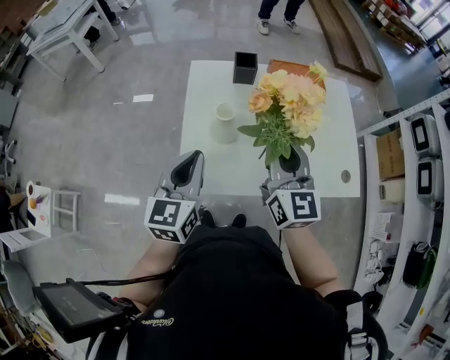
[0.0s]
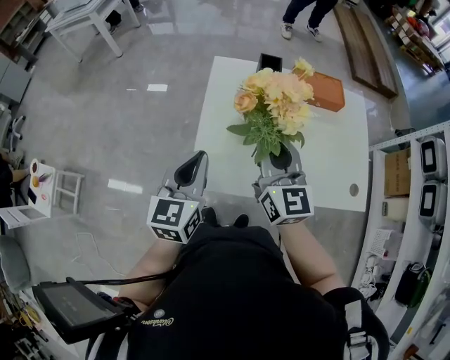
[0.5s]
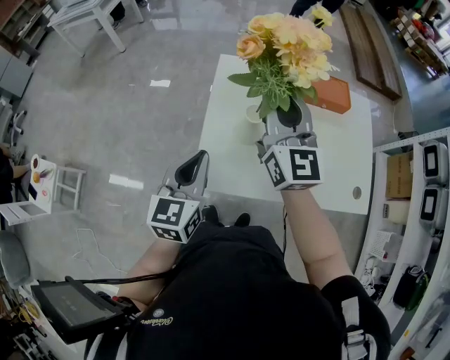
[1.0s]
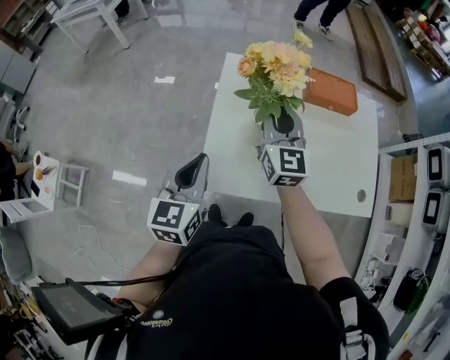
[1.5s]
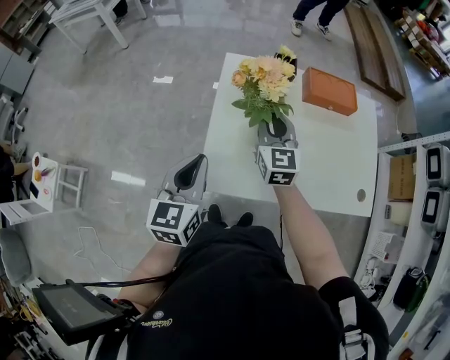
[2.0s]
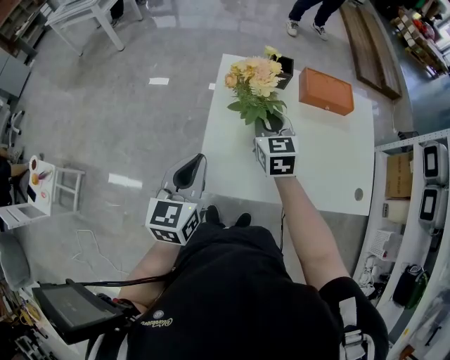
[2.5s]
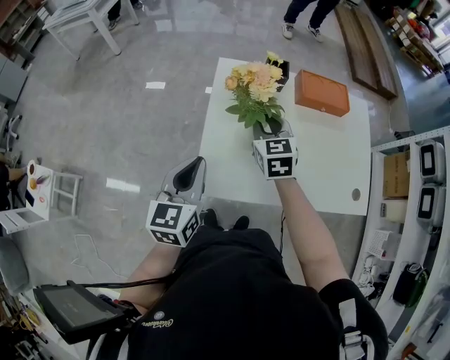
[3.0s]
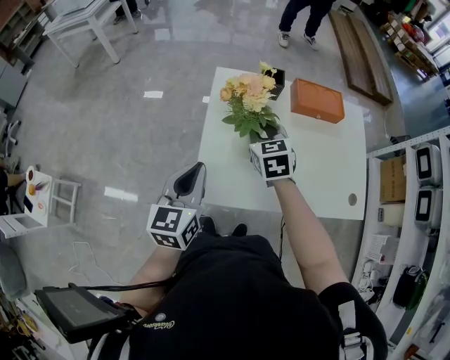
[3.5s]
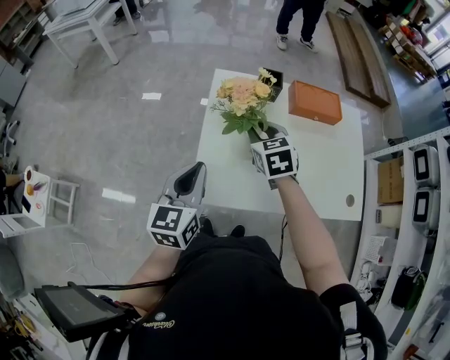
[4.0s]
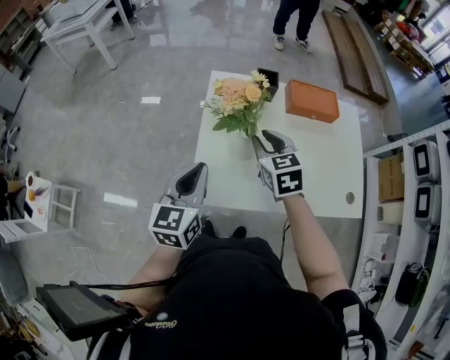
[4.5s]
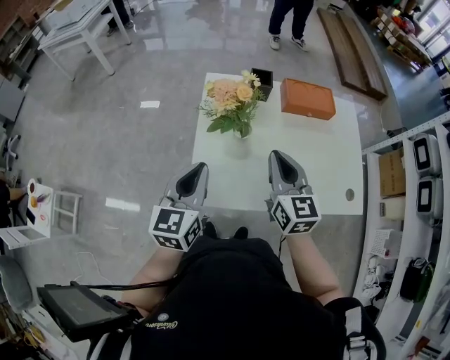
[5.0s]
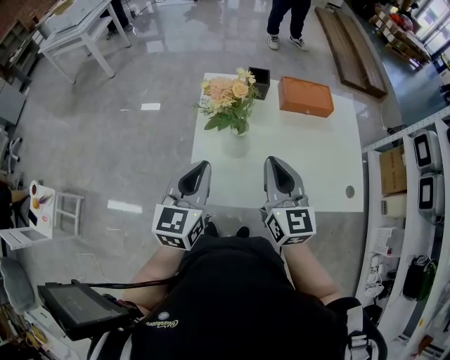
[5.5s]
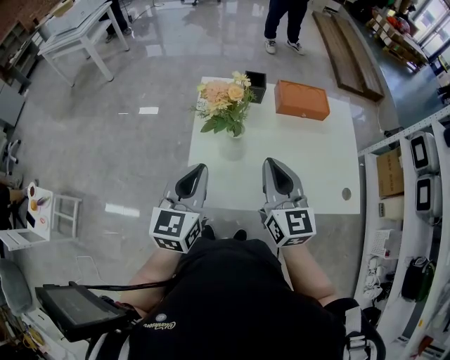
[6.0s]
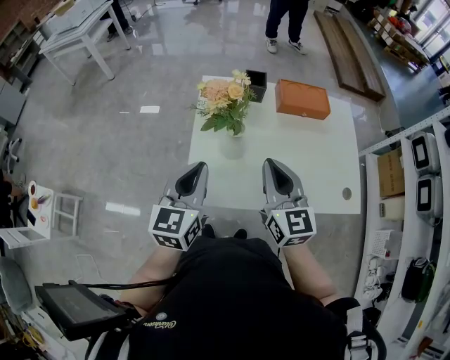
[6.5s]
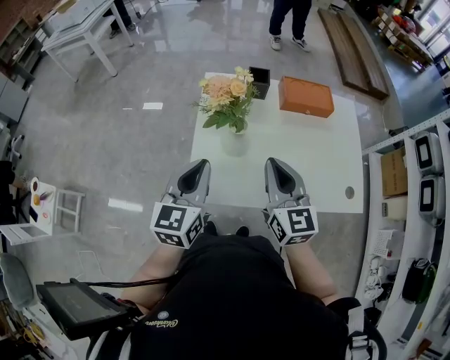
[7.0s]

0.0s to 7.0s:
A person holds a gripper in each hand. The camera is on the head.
0.0s to 2.0s: The right gripper travels forward, to the left and downward by approximately 20 cm; the left gripper heads to the left, covering about 10 cm.
2.0s to 3.5s: The right gripper changes its angle by some 20 degrees.
3.5s to 5.0s: The right gripper shifts approximately 15 cm backward, upward and to the right, and changes its angle by about 30 degrees.
5.0s to 7.0s: There are only small adjustments of the grippers.

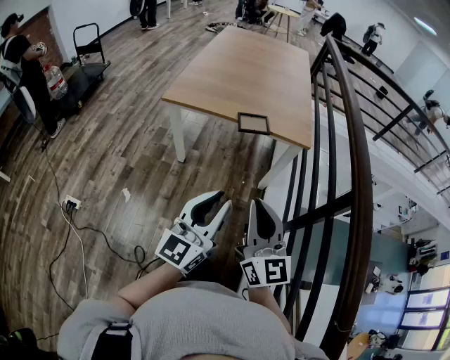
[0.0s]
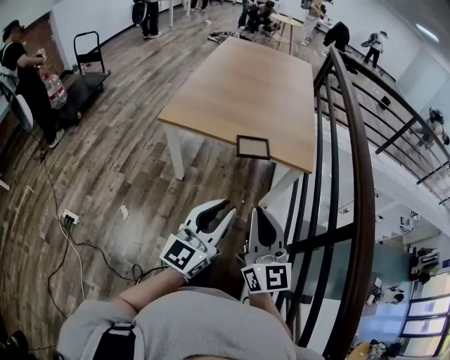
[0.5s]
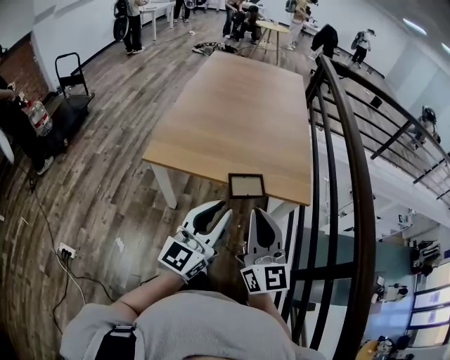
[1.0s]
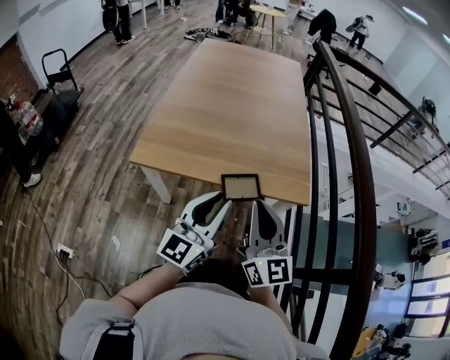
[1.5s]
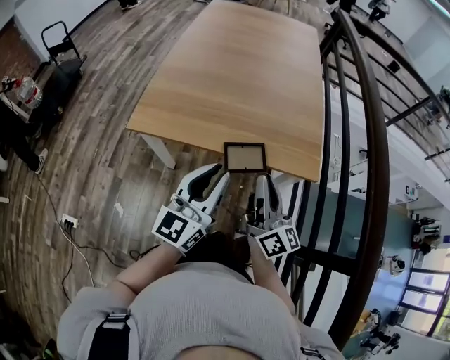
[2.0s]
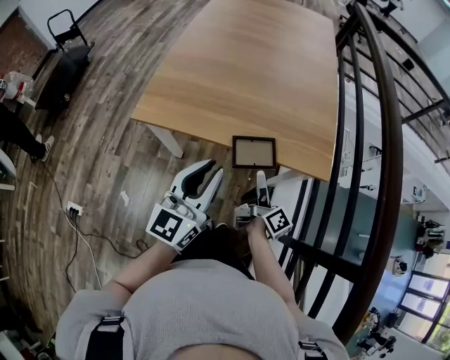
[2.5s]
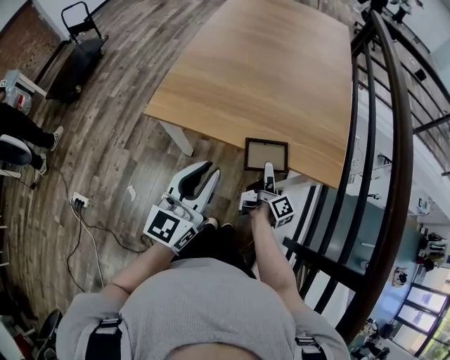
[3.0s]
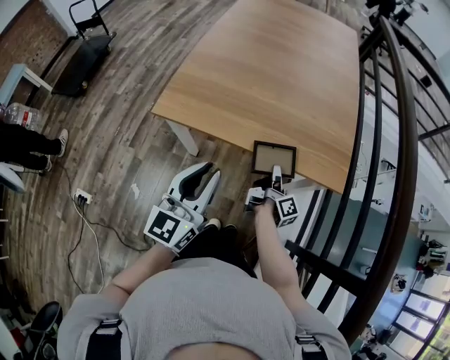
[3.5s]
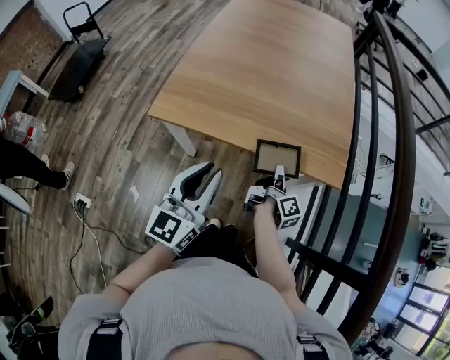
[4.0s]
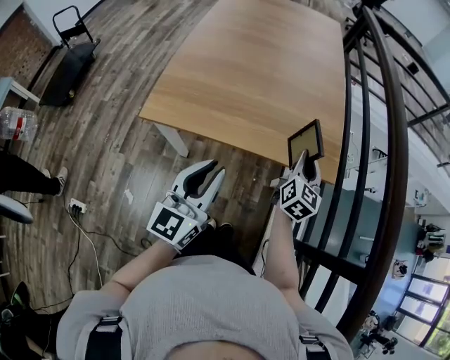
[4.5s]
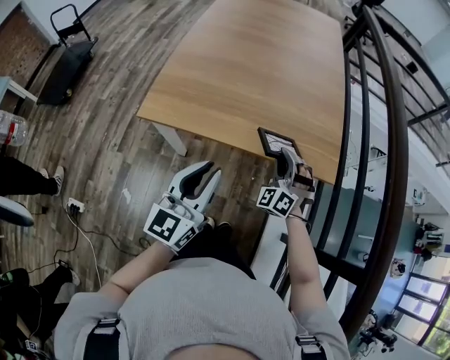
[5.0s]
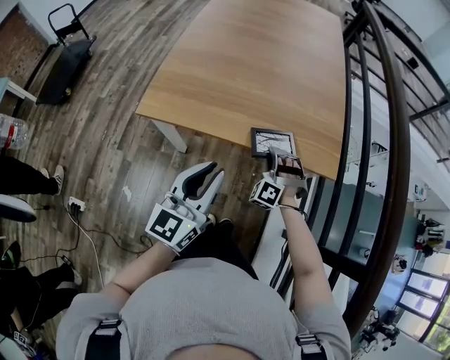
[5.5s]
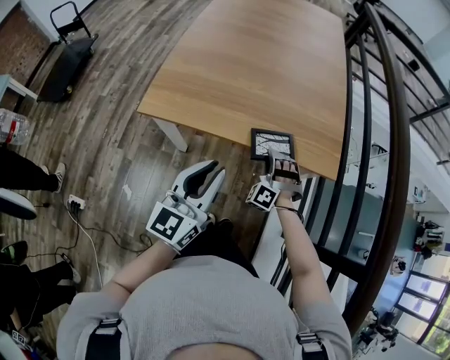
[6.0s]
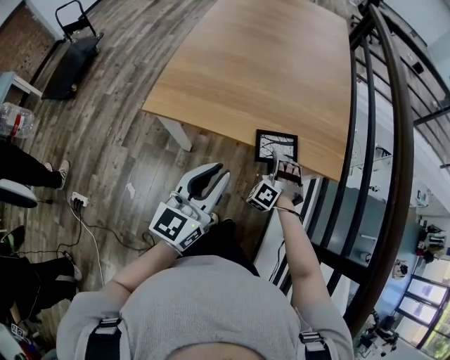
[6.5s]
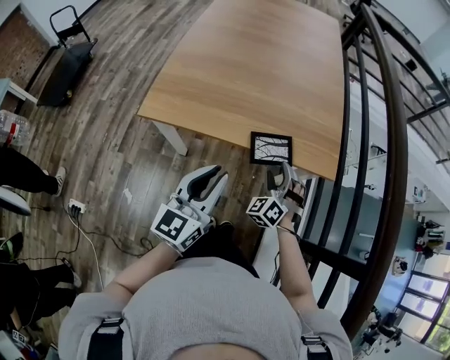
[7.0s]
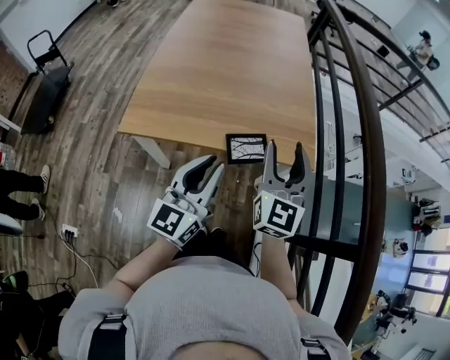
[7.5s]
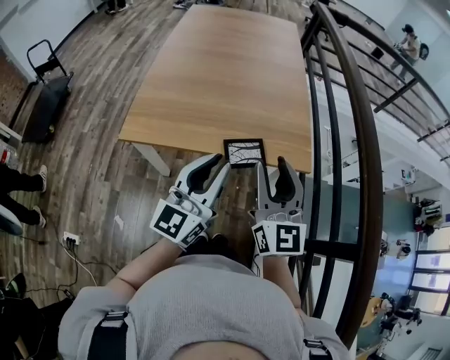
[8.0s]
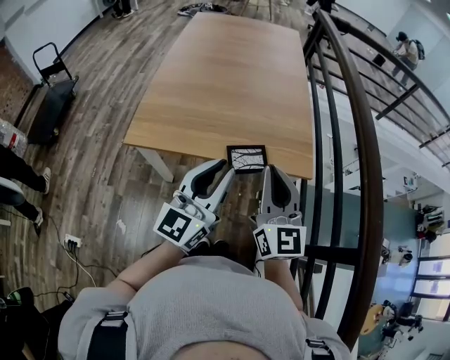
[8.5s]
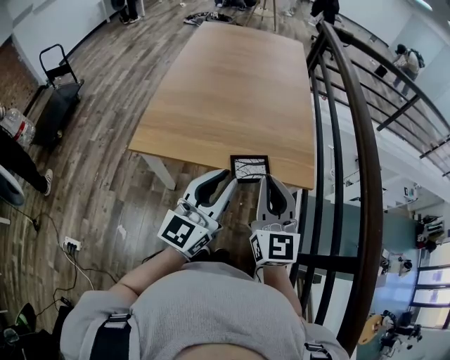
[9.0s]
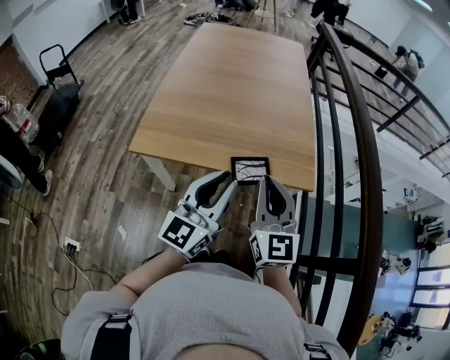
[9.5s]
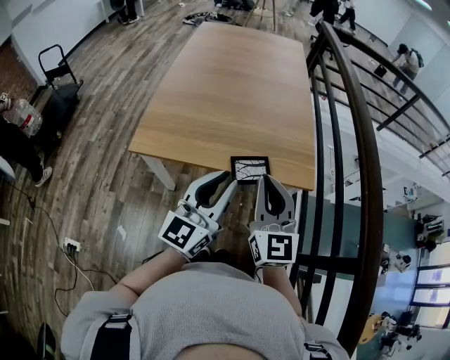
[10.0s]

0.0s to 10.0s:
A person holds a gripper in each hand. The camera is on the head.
0.0s to 2.0s: Both grippers move forward, approximately 40 cm. The right gripper swivels roughly 30 degrees.
2.0s to 4.0s: The left gripper shifts about 5 cm to the left. The right gripper is displaced downward and forward by some 20 cm, turns by roughly 50 degrees, and opens and closes again.
4.0s to 6.0s: The right gripper is displaced to the left by some 5 cm, goes upward and returns, roughly 10 cm each way, and twists about 170 degrees counterclockwise, seen from behind.
6.0s to 8.0s: The left gripper moves upward and to the right, approximately 10 cm, while the right gripper goes roughly 30 cm upward, rolls clockwise, seen from behind, by approximately 80 degrees, and opens its fingers.
8.0s to 10.0s: The right gripper closes up.

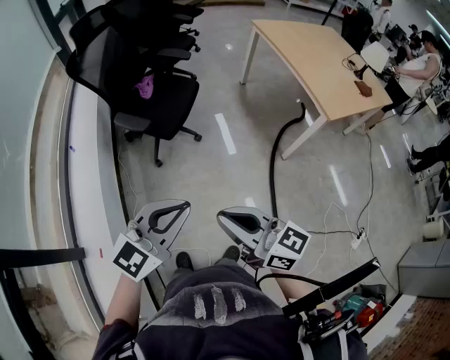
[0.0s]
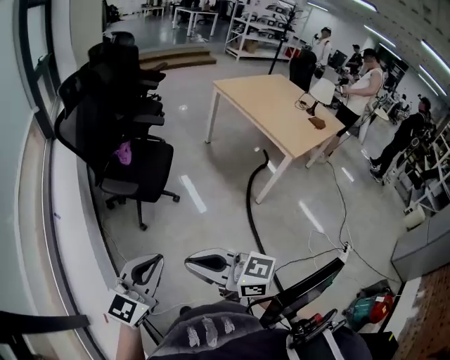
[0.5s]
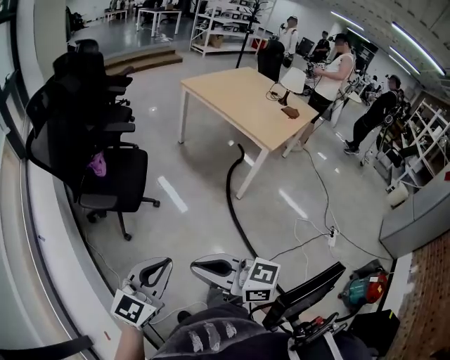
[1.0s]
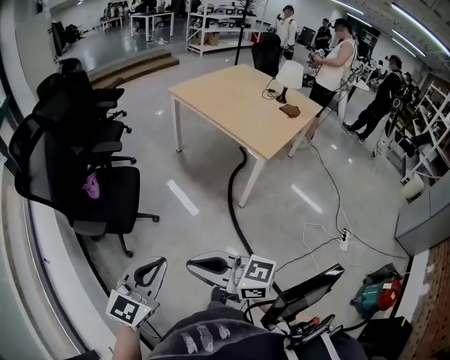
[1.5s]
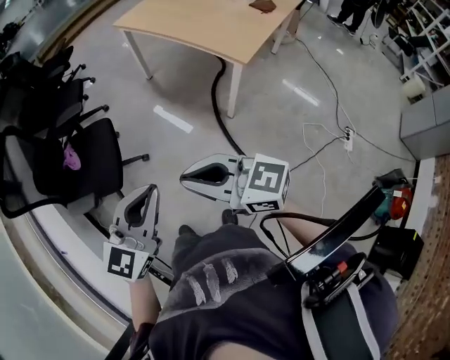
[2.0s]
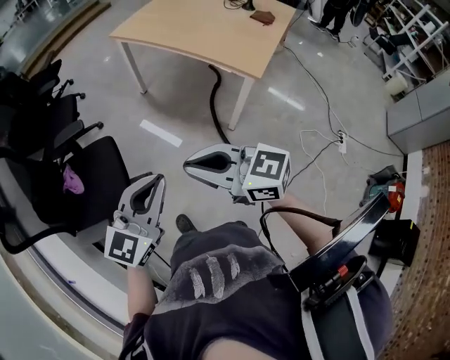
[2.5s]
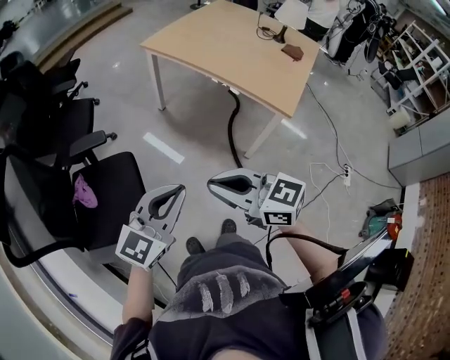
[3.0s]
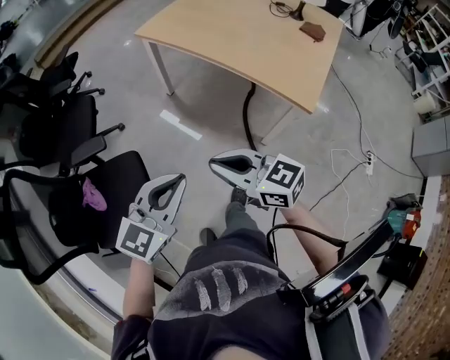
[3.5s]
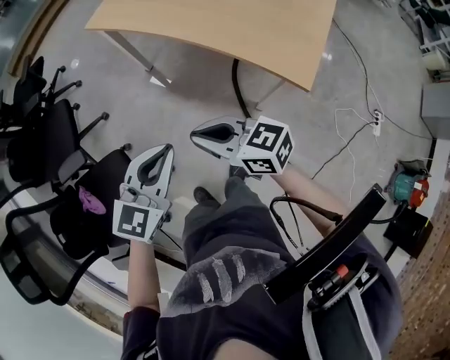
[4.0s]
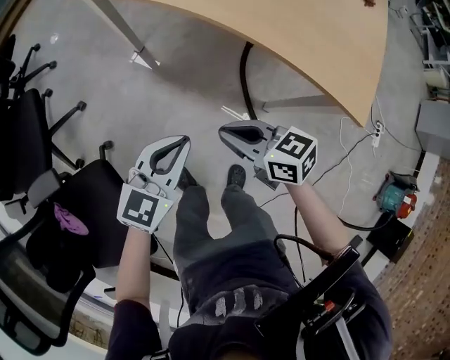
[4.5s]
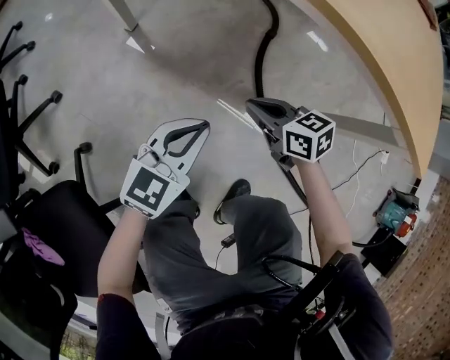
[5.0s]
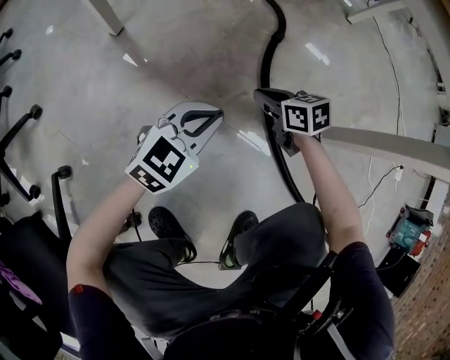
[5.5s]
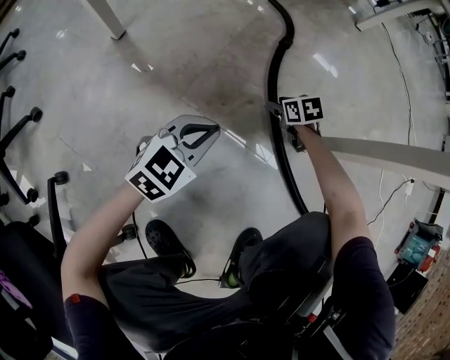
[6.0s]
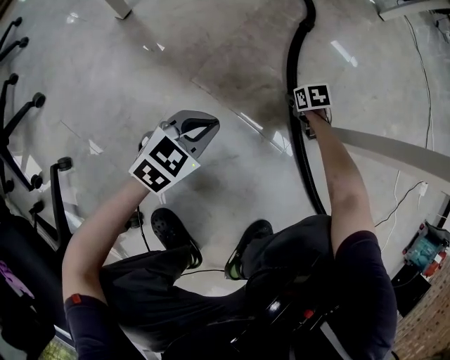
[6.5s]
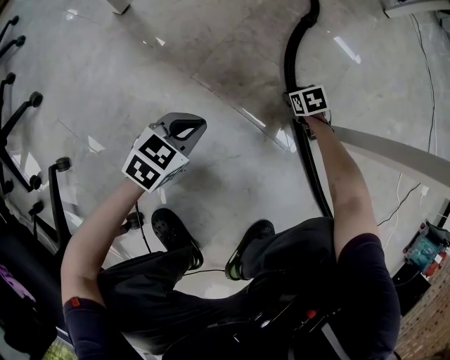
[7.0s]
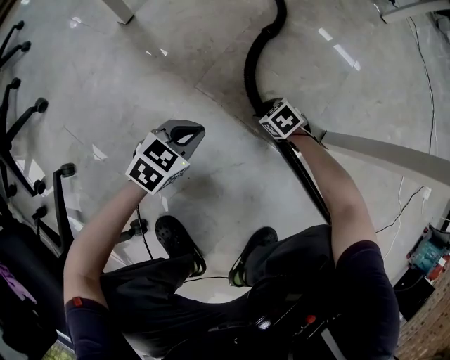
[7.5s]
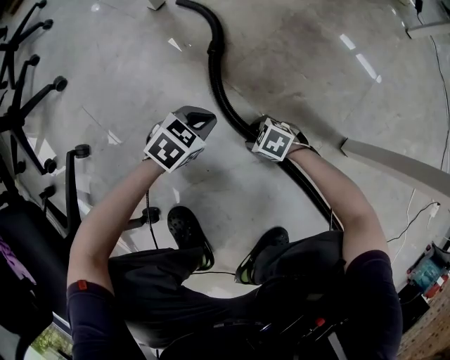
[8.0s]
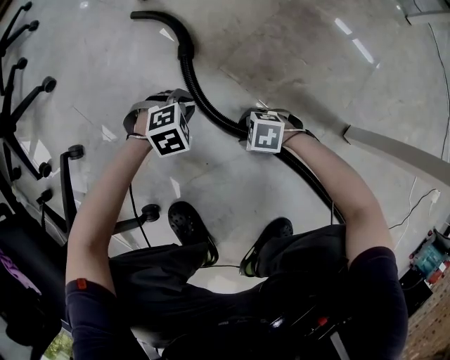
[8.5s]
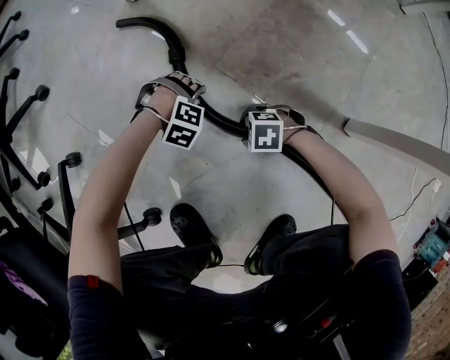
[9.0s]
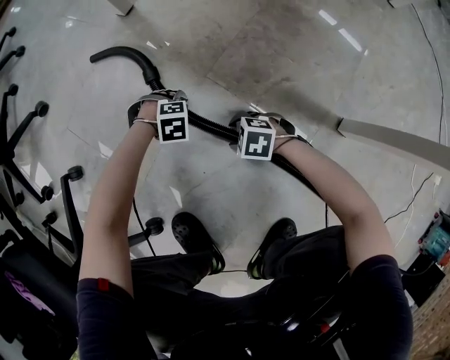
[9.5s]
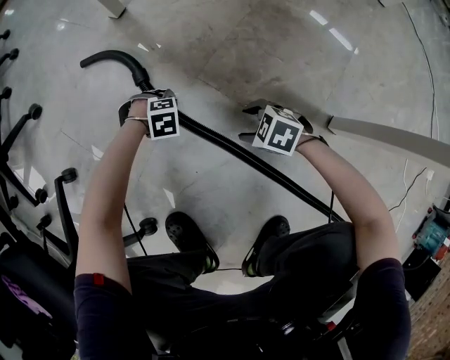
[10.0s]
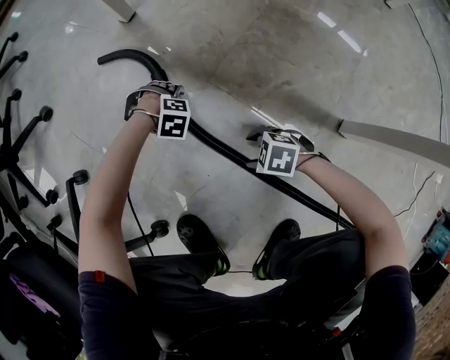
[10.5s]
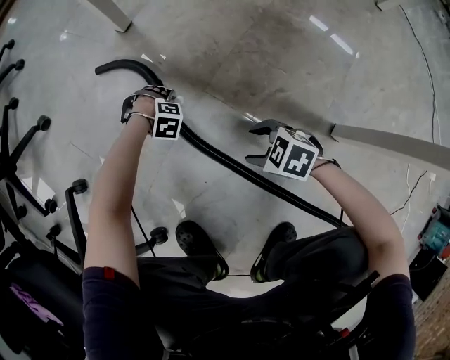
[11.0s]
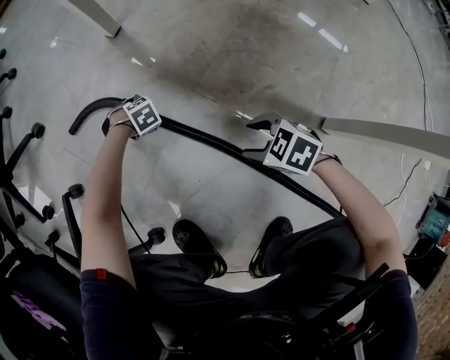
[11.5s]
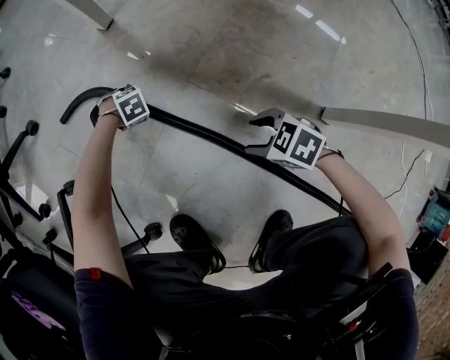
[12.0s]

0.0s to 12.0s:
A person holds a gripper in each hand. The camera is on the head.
0.0s to 2.0s: Both grippers move forward and to the right, about 20 cm.
2.0s to 4.0s: The two grippers travel together, forward, some 50 cm. The right gripper turns by roughly 20 degrees.
4.0s to 6.0s: The two grippers go approximately 80 cm downward. The left gripper turns by approximately 30 degrees, while the right gripper angles its fingers downward, by approximately 50 degrees, and opens.
6.0s to 8.0s: The left gripper travels downward by approximately 15 cm, and rotates about 30 degrees; the right gripper shifts by approximately 30 cm, and rolls counterclockwise, seen from behind, by some 50 degrees.
8.0s to 10.0s: The left gripper goes approximately 15 cm downward, points its fingers approximately 30 degrees further downward, and opens up. Meanwhile the right gripper shifts some 5 cm upward.
10.0s to 12.0s: The left gripper ends up approximately 10 cm from where it was; the right gripper is displaced upward by approximately 5 cm.
